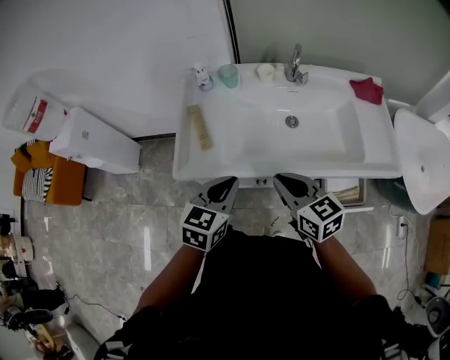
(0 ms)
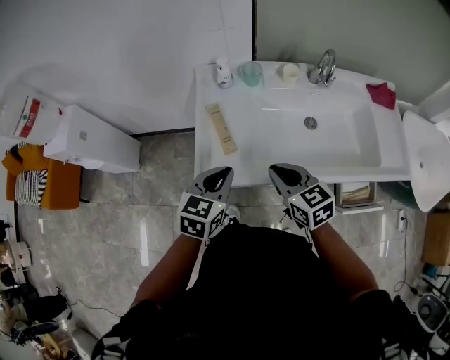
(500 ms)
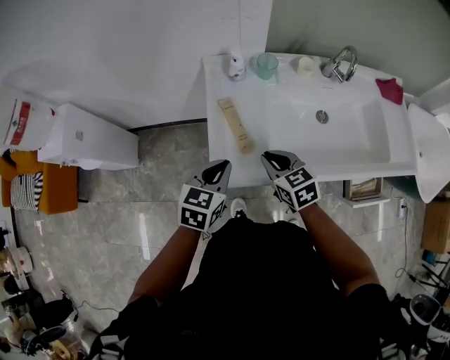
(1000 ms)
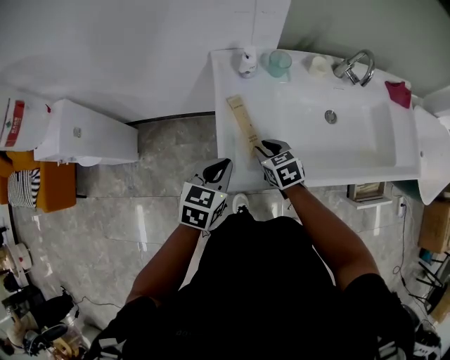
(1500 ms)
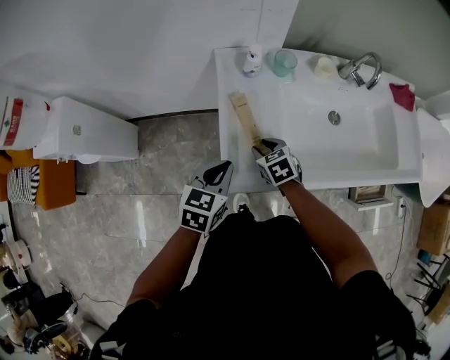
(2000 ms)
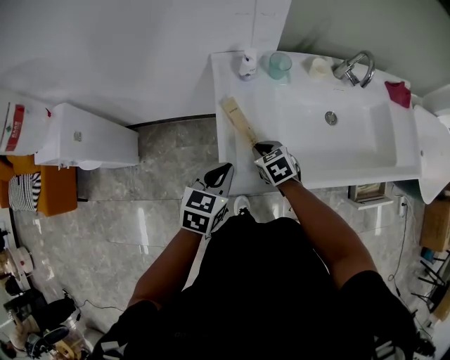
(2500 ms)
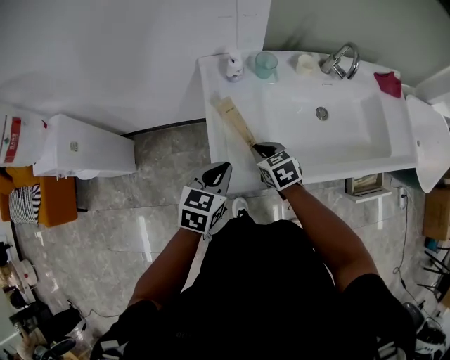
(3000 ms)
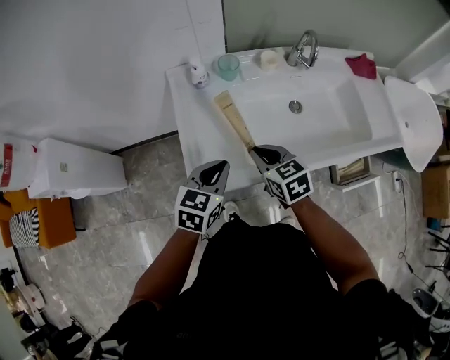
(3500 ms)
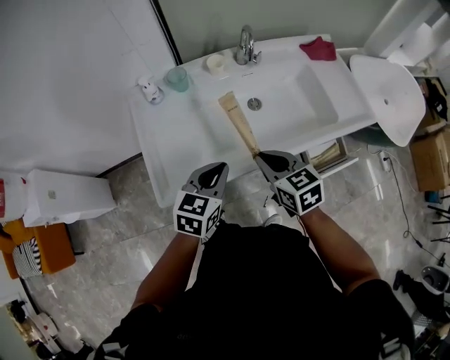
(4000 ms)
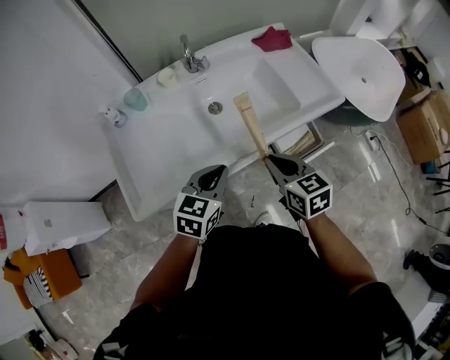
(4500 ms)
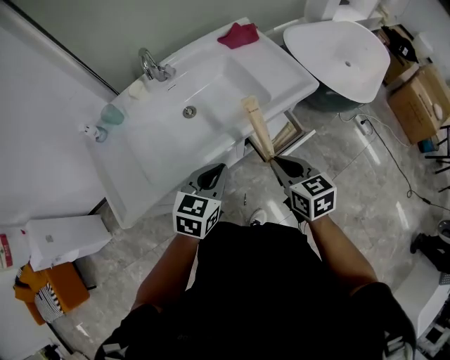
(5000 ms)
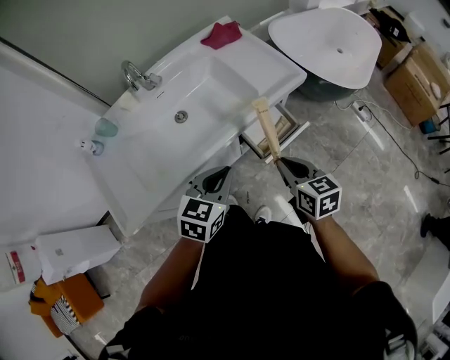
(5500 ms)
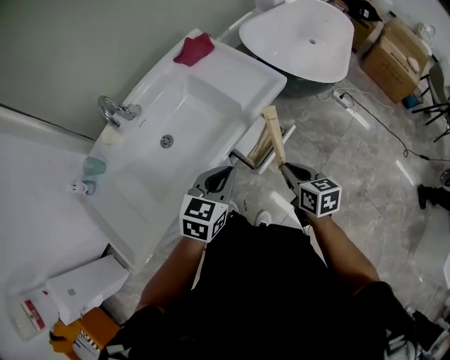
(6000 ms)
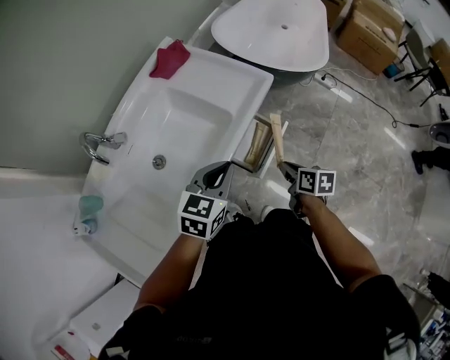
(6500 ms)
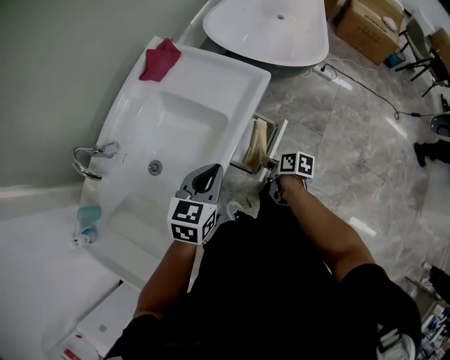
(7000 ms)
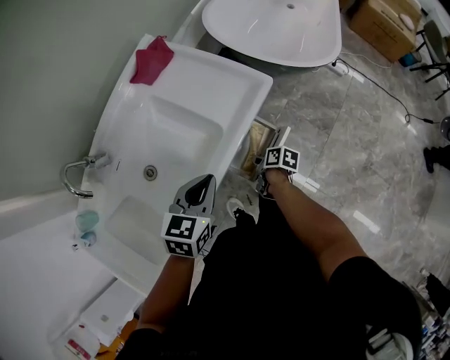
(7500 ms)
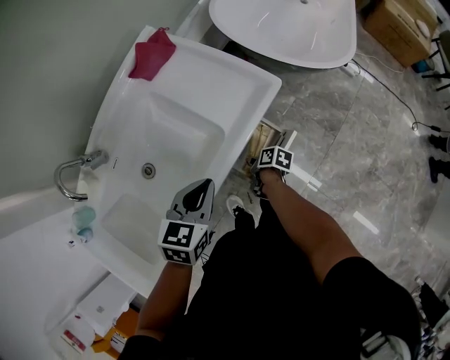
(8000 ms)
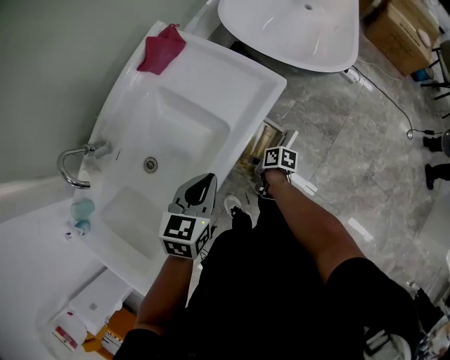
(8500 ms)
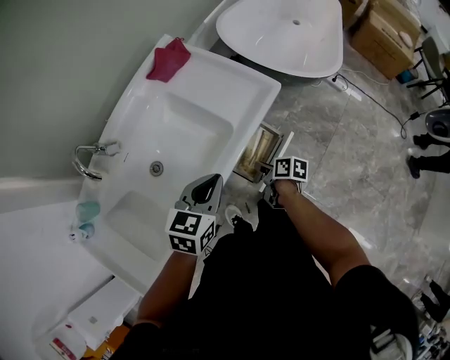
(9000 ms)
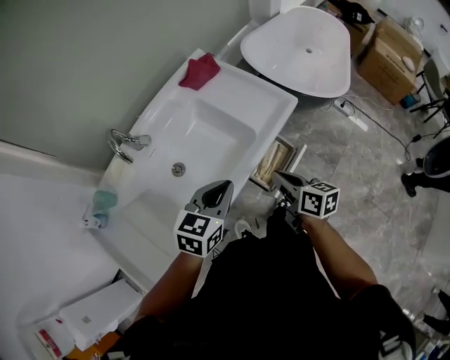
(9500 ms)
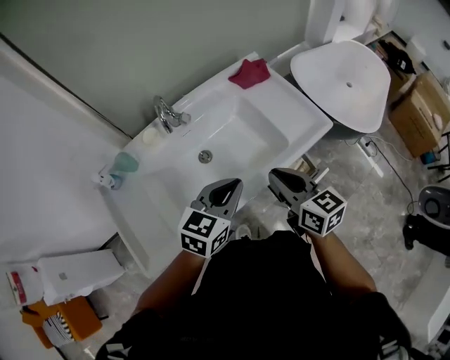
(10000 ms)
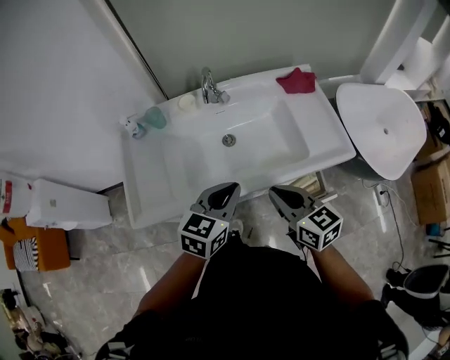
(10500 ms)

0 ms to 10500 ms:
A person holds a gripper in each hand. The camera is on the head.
0 ms to 2000 ms: The right gripper goes roughly 40 cm to the left, downward and forward, tilts its fingers some 30 degrees downward, and opens; the left gripper shifts roughly 25 cm to the left and forward.
2000 ms to 4000 ms: The right gripper goes some 30 cm to the right, upward and backward, swivels some 30 degrees, and closes its fingers. The left gripper heads to the right, covering about 25 cm.
4000 ms to 6500 ms: The right gripper ends up about 40 cm from where it was, and twists about 60 degrees clockwise, seen from behind, while the left gripper changes place by about 35 cm, and rotates about 40 degrees.
6500 ms to 8500 ms: The left gripper is displaced forward by approximately 5 cm. The right gripper is displaced downward and forward by about 20 cm, and turns by some 30 degrees.
8500 ms to 10500 ms: The right gripper goes approximately 40 cm upward, and rotates around the line of its fingers by approximately 80 degrees, counterclockwise from behind; the left gripper shifts by some 25 cm, and swivels about 30 degrees.

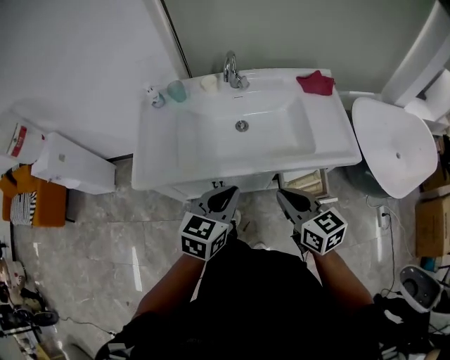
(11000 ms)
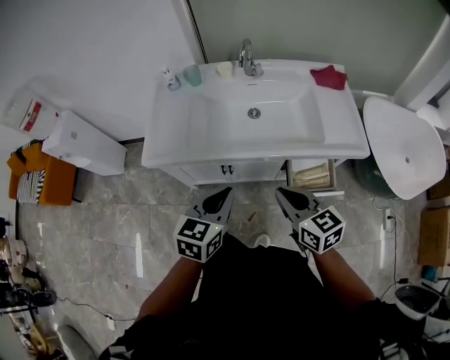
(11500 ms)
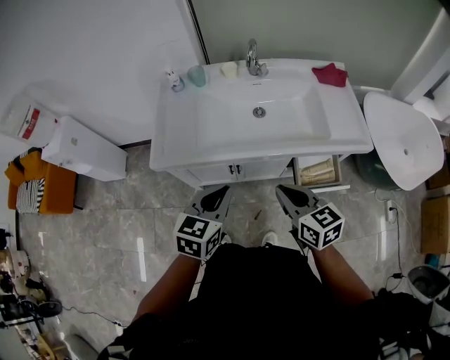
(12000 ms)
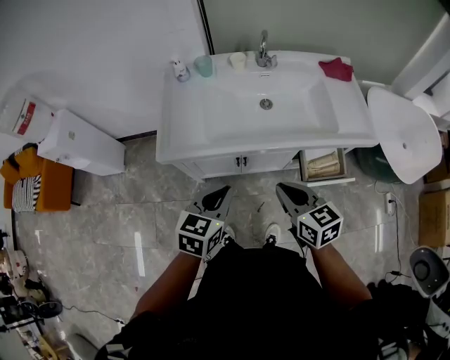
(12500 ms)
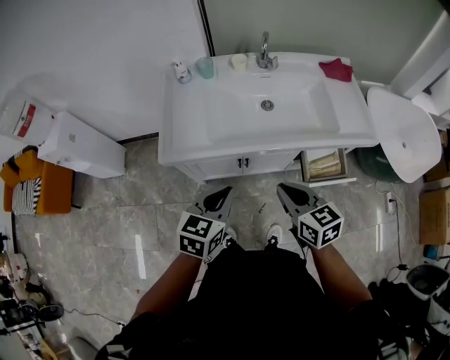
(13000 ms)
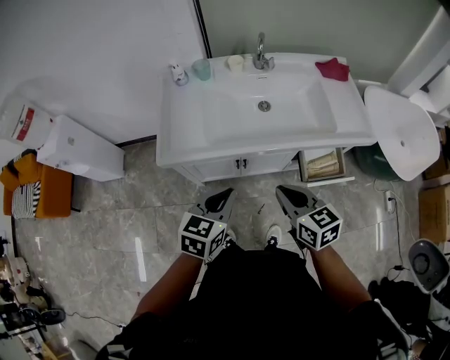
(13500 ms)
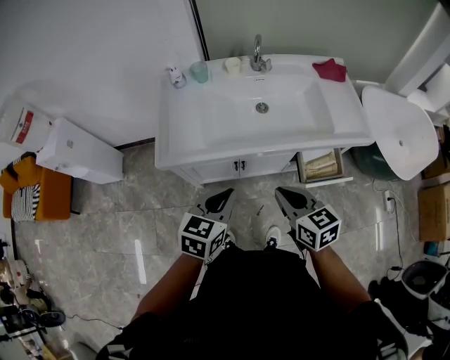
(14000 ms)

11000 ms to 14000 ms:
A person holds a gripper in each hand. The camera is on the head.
11000 ms to 12500 ms: The right gripper heads to the left, covering roughly 10 cm. The left gripper heads to the left and backward, covering roughly 15 cm.
12500 ms to 14000 ms: Both grippers stay about where they are.

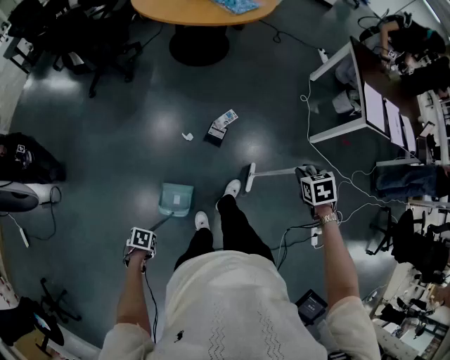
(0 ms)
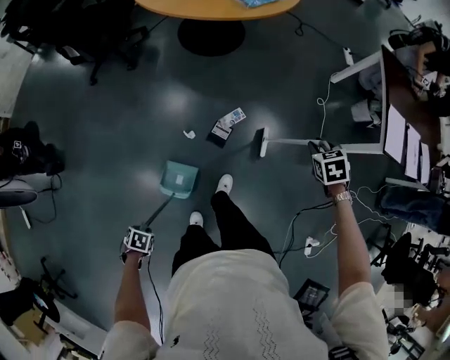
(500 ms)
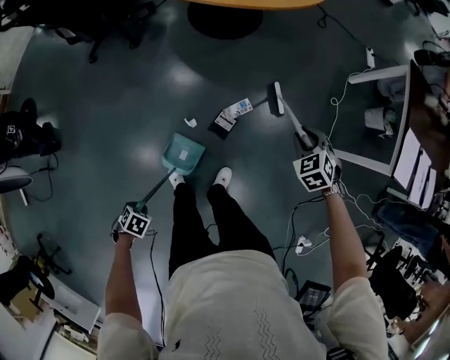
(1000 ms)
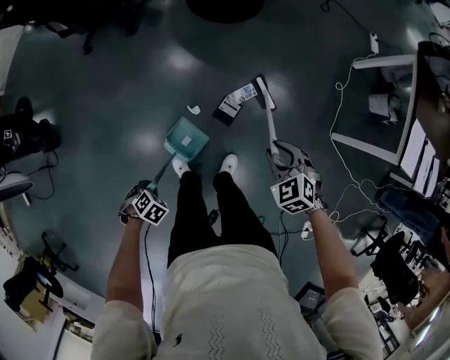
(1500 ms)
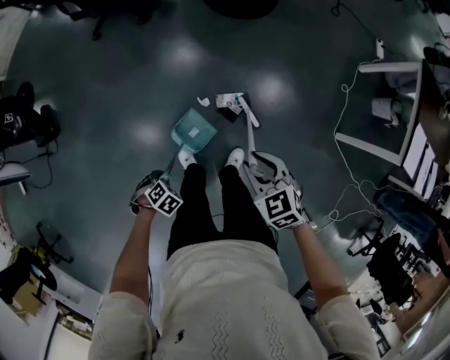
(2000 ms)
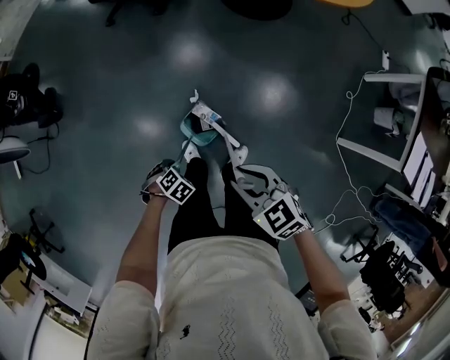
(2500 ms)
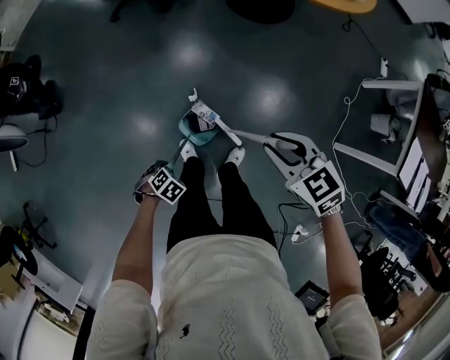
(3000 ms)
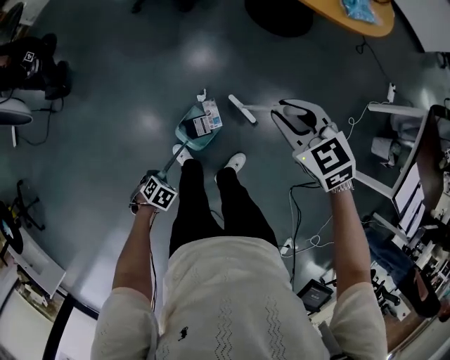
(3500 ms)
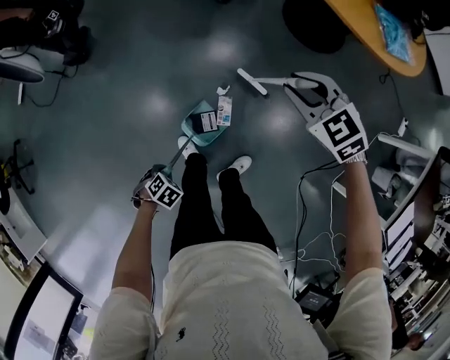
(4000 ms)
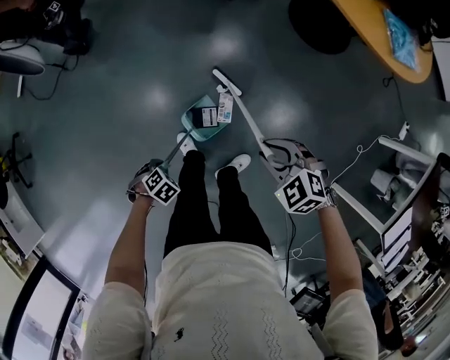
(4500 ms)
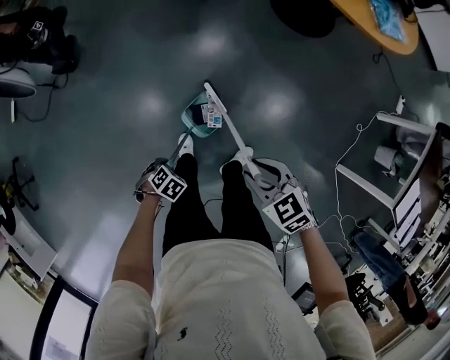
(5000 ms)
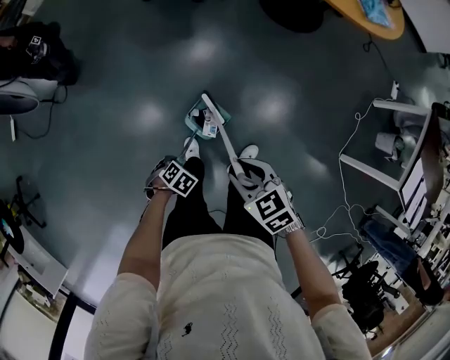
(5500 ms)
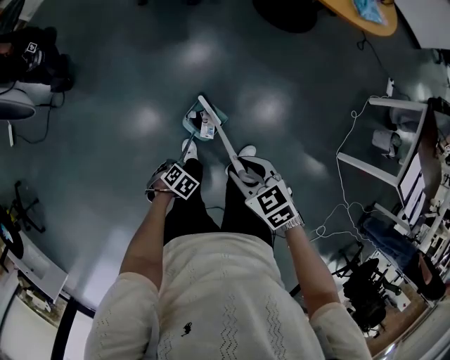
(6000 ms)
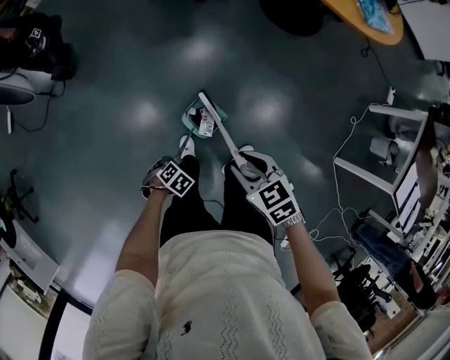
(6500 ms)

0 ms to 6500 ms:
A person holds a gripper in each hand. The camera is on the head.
0 ms to 2000 ms: The right gripper moves roughly 35 cm, and changes its angle by some 40 degrees.
2000 ms to 4500 ms: The right gripper goes upward and returns, approximately 10 cm each way, and rotates around the line of its fingers by about 40 degrees, counterclockwise from behind.
4500 ms to 6500 ms: The right gripper shifts by approximately 15 cm, and rotates around the line of its fingers by approximately 40 degrees, clockwise from behind.

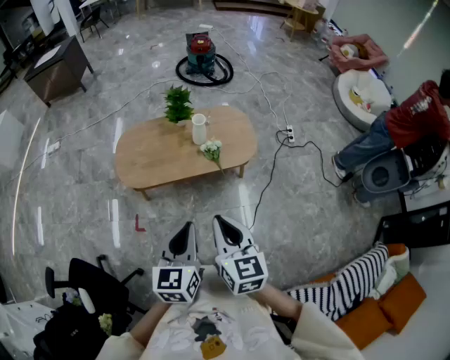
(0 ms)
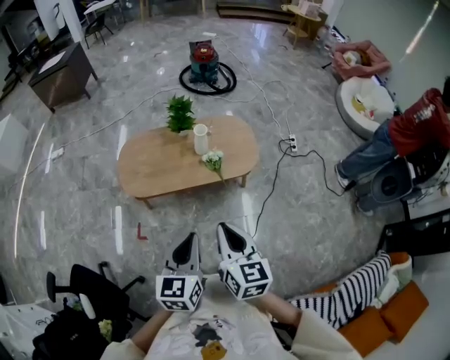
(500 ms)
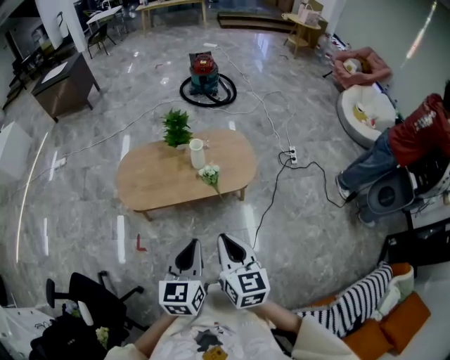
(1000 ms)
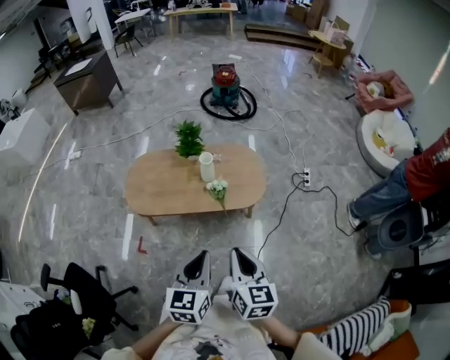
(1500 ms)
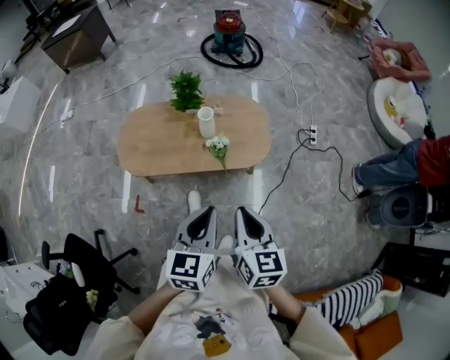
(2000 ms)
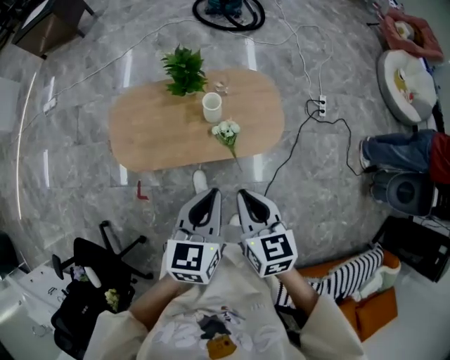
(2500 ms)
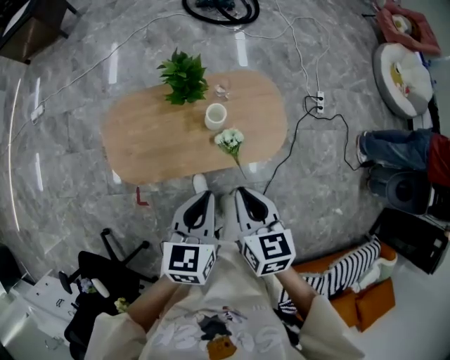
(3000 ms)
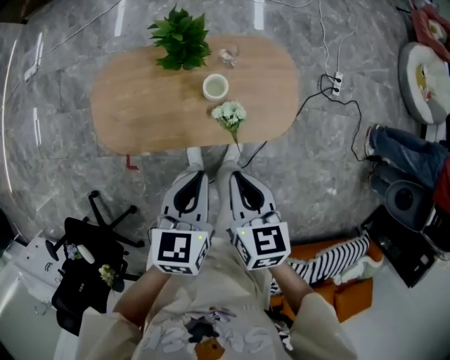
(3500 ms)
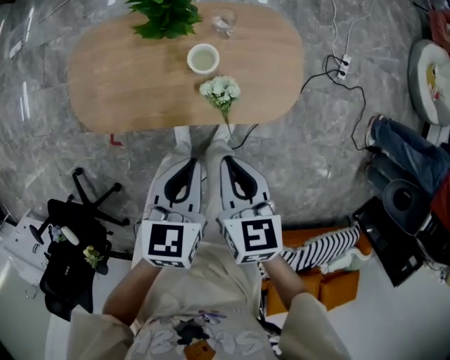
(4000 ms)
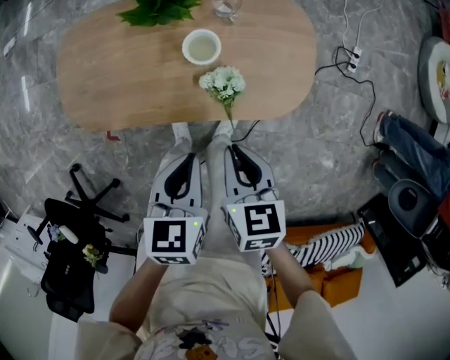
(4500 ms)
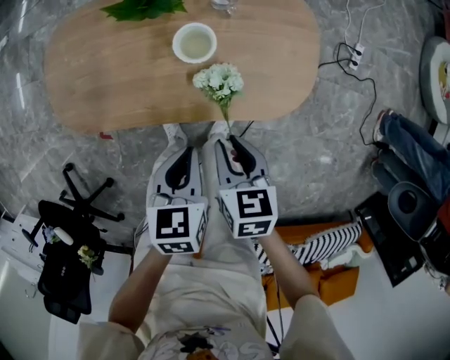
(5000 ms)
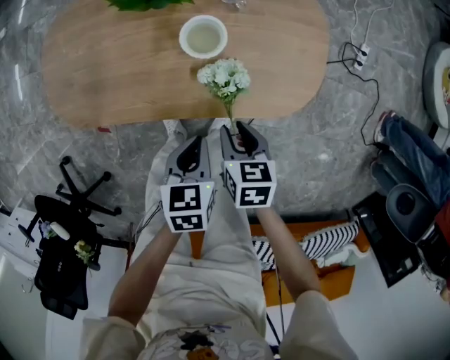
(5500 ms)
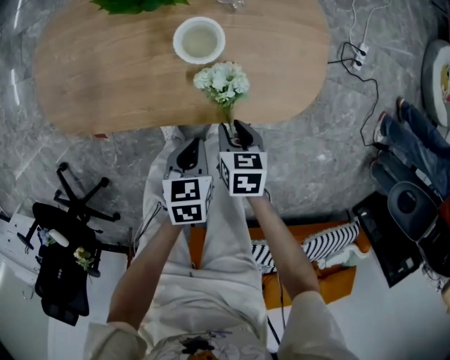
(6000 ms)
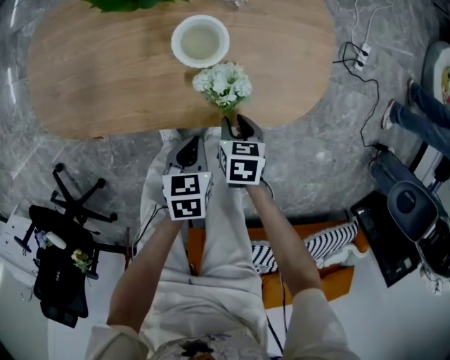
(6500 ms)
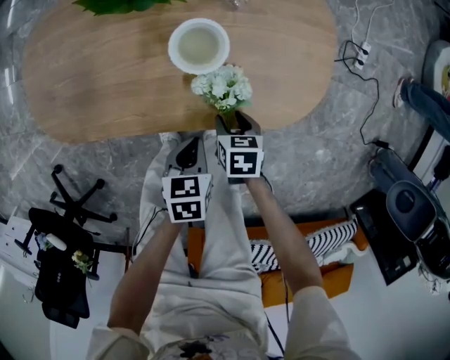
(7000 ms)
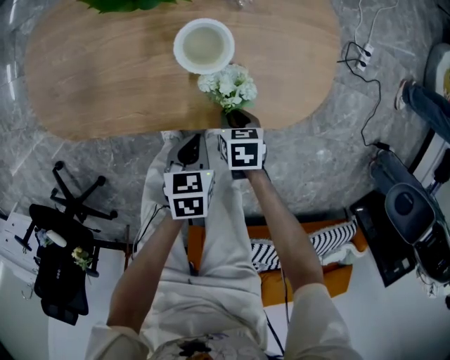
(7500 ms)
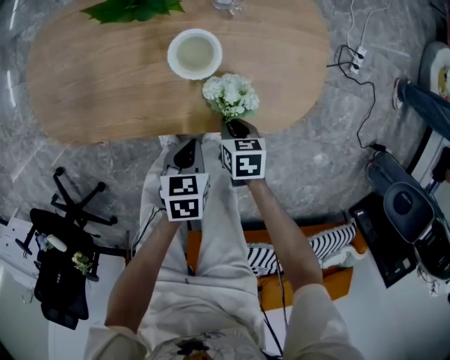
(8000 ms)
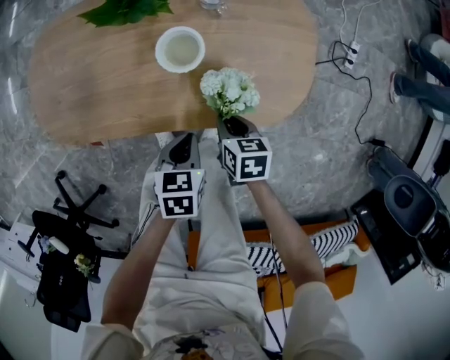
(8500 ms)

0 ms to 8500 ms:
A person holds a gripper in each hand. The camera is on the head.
0 ms to 2000 ms: The left gripper heads forward and to the right, covering roughly 20 cm; the right gripper moves to the right and forward, approximately 20 cm.
2000 ms to 4000 ms: The two grippers go roughly 35 cm forward and downward. The right gripper rotates some 20 degrees. Meanwhile the left gripper changes its angle by some 20 degrees.
4000 ms to 6500 ms: The grippers both shift downward by some 35 cm. The left gripper changes its angle by about 20 degrees. The right gripper swivels approximately 30 degrees, and opens.
6500 ms to 8500 ms: The left gripper shifts by roughly 5 cm.
